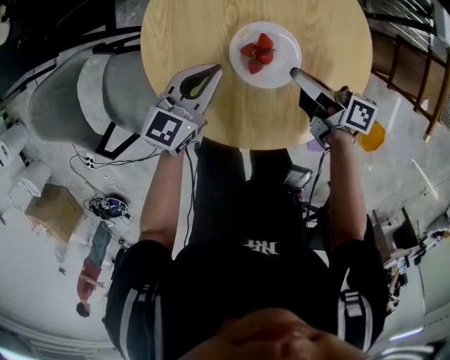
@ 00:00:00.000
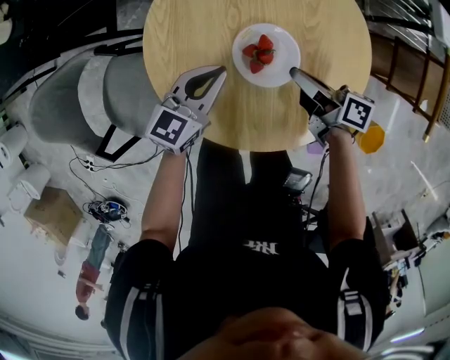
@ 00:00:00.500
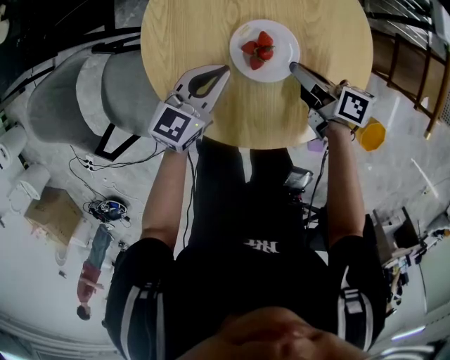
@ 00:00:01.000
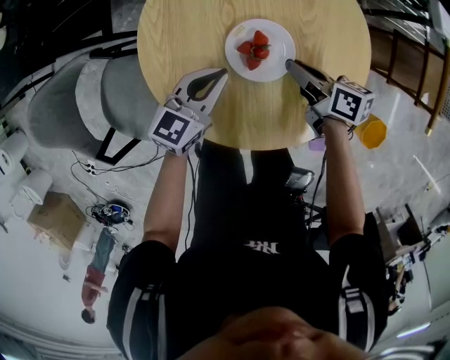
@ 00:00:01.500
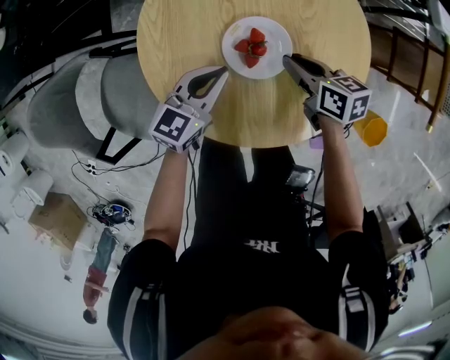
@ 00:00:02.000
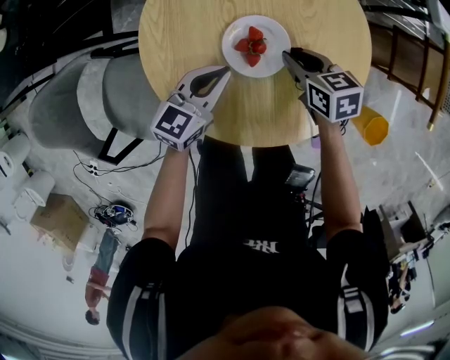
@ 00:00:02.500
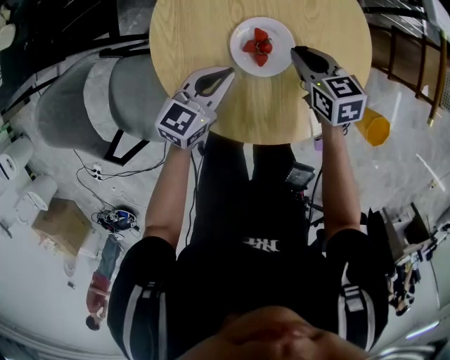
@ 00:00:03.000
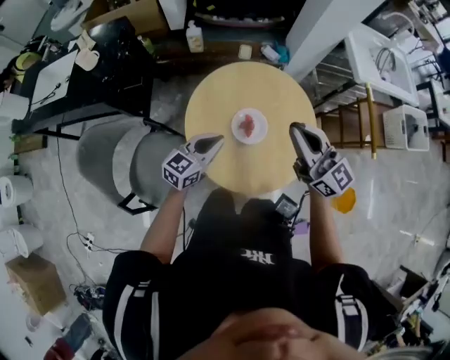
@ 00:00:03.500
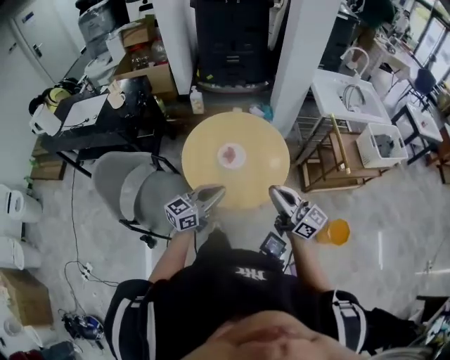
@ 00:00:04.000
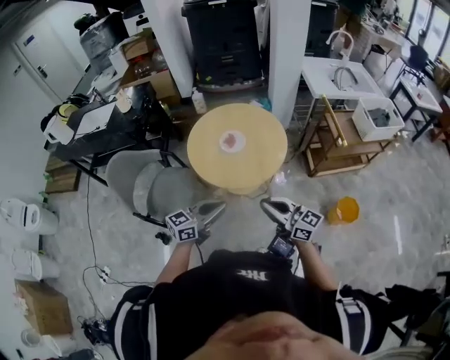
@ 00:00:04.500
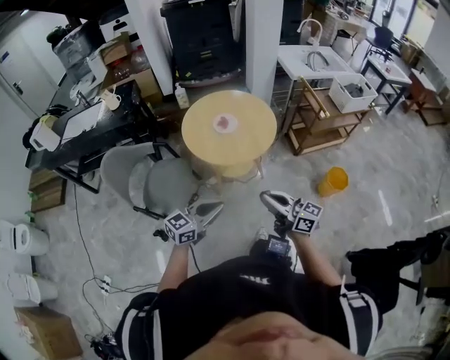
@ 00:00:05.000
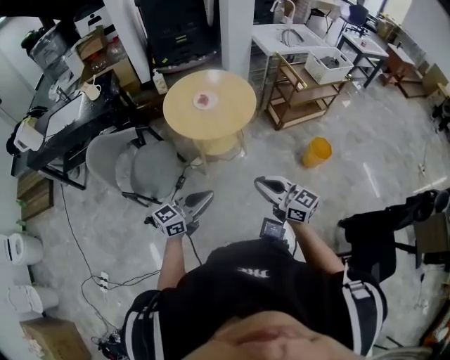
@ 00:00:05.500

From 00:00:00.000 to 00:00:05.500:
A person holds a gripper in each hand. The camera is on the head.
From 00:00:00.000 to 00:00:02.000: The right gripper swivels some 40 degrees.
From 00:00:02.000 to 00:00:03.500: The right gripper travels upward by approximately 35 cm, and points its fingers about 50 degrees further upward. Meanwhile the left gripper shifts some 15 cm upward.
From 00:00:03.500 to 00:00:05.500: Both grippers are carried backward, approximately 60 cm. The left gripper rotates some 20 degrees.

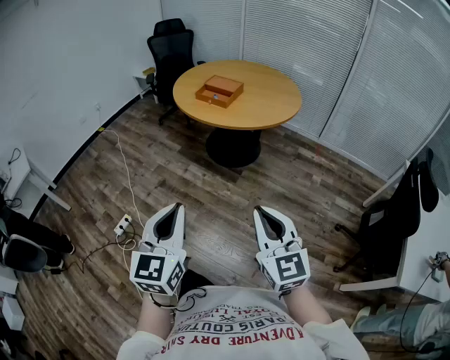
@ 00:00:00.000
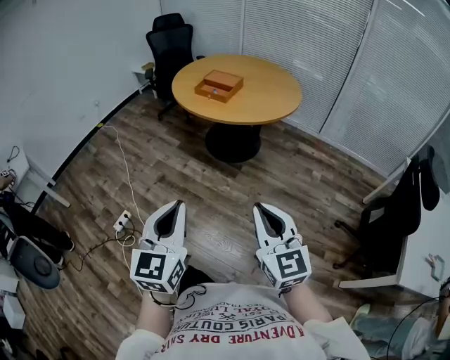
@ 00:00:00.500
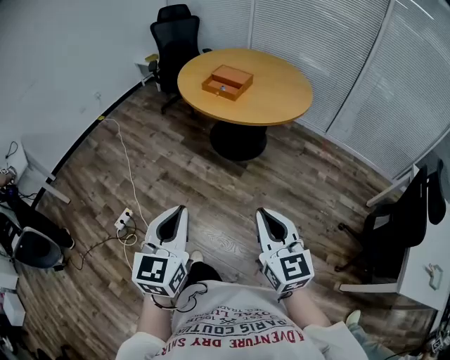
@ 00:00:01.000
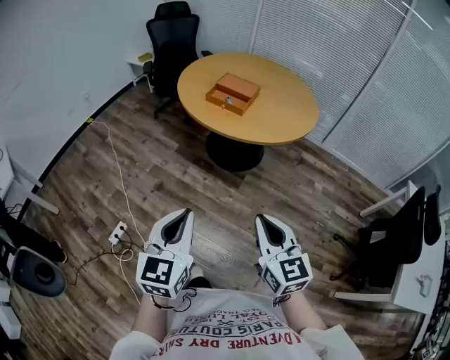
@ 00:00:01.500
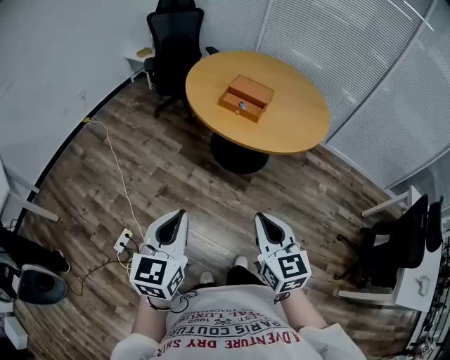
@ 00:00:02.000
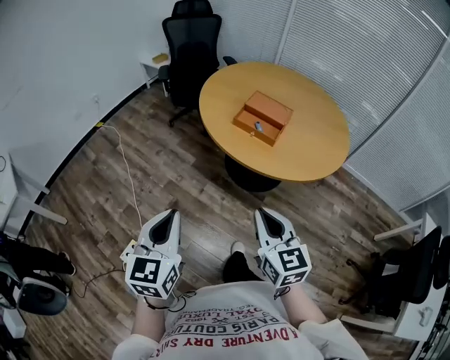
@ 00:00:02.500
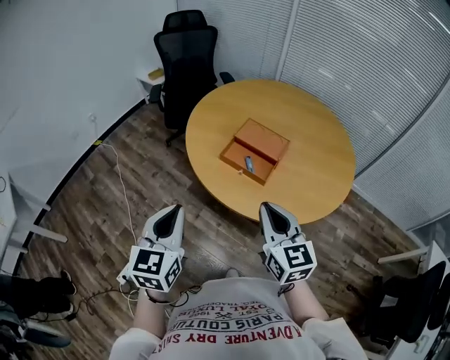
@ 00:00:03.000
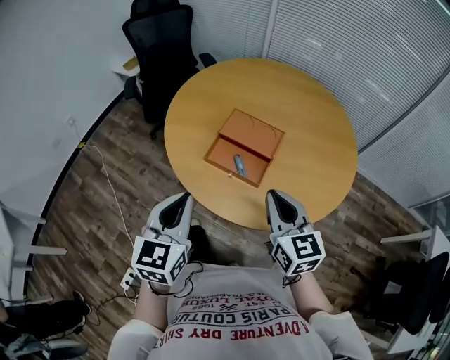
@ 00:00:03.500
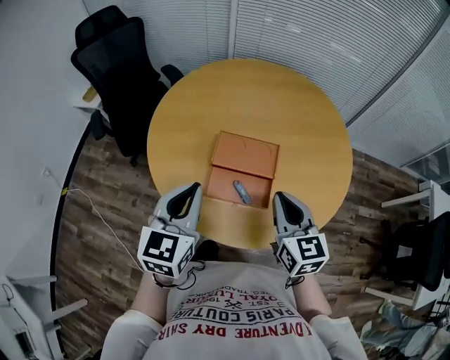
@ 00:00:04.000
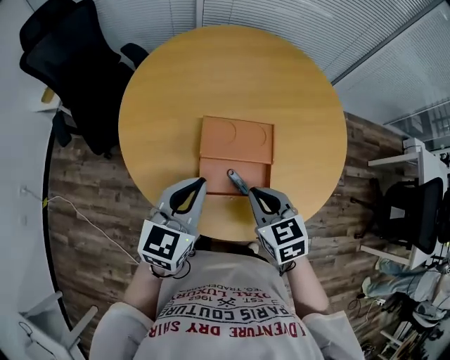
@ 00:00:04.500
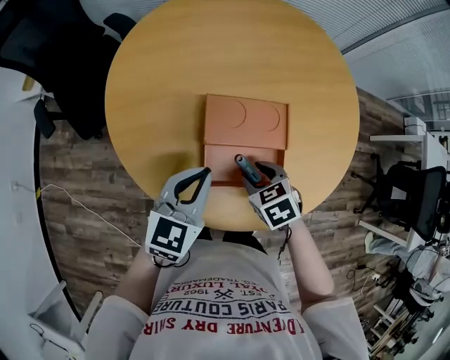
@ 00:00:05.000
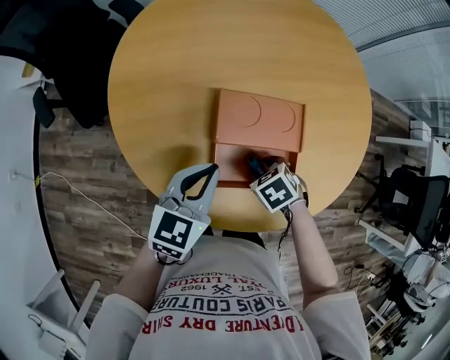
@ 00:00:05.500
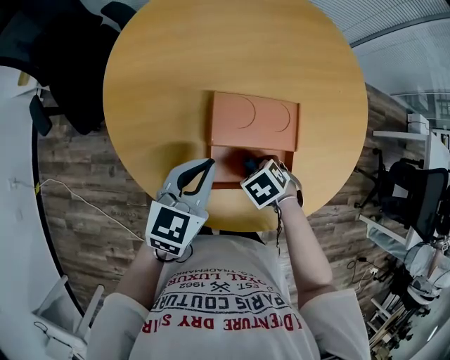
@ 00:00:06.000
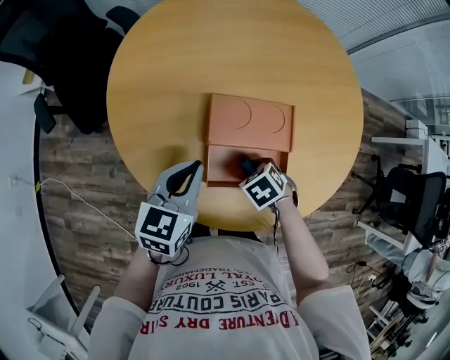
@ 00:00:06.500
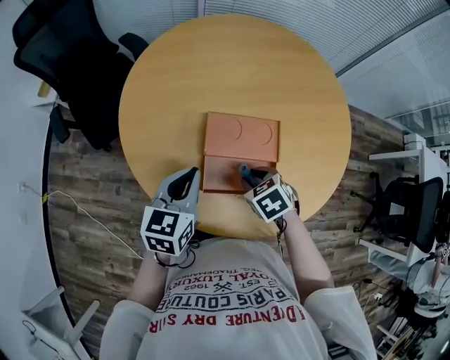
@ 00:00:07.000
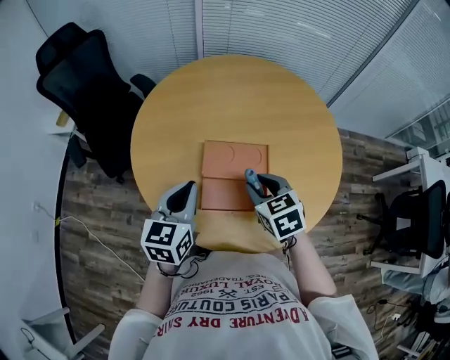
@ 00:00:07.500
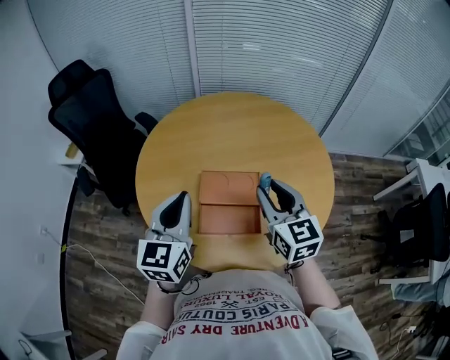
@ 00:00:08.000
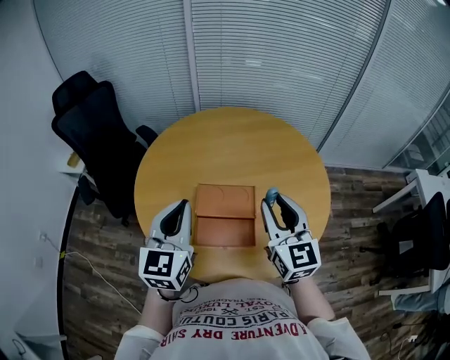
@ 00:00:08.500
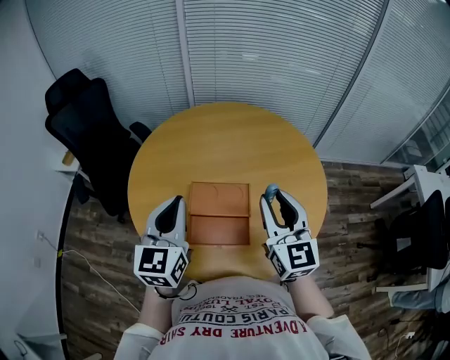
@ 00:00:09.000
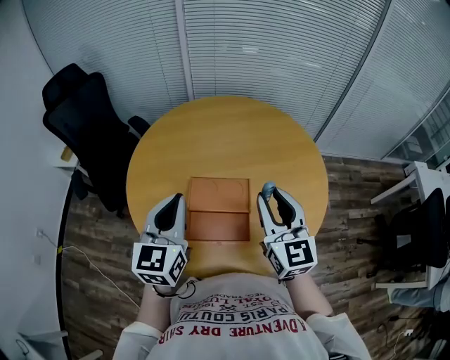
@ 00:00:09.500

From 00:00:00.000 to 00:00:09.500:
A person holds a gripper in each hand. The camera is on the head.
From 00:00:00.000 to 00:00:02.000: Both grippers move forward and to the left, some 35 cm.
From 00:00:02.000 to 00:00:04.000: Both grippers are carried approximately 60 cm. The right gripper swivels roughly 20 degrees; the left gripper swivels roughly 20 degrees.
From 00:00:04.000 to 00:00:05.500: The right gripper travels downward by approximately 30 cm, points its fingers about 60 degrees further downward, and opens up. The left gripper heads downward, covering roughly 15 cm, and changes its angle by about 30 degrees.
From 00:00:05.500 to 00:00:07.500: The left gripper heads upward, covering approximately 10 cm. The right gripper goes about 20 cm upward, and tips its fingers upward by some 40 degrees.
From 00:00:07.500 to 00:00:09.500: The left gripper shifts roughly 10 cm upward; the right gripper shifts roughly 20 cm upward and to the right, and angles its fingers upward, by some 40 degrees.

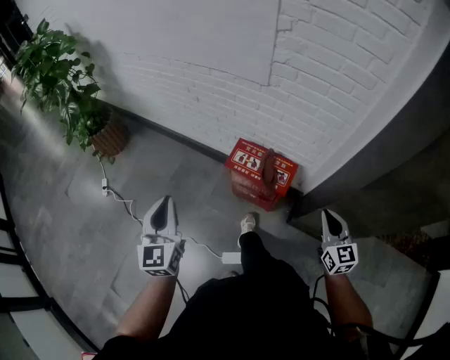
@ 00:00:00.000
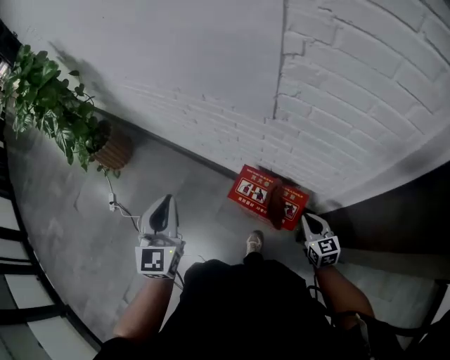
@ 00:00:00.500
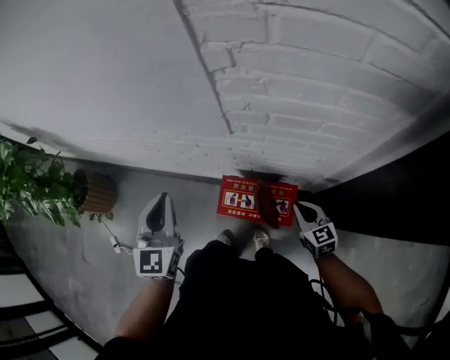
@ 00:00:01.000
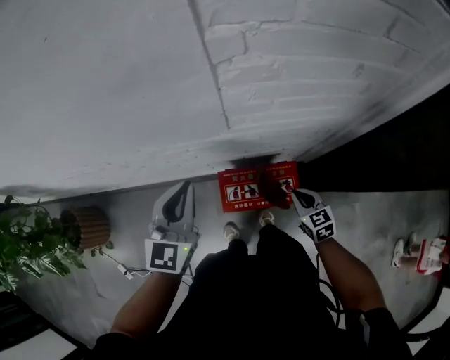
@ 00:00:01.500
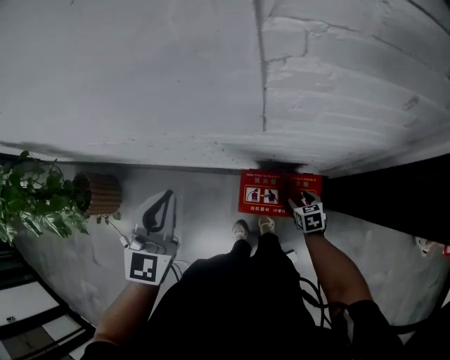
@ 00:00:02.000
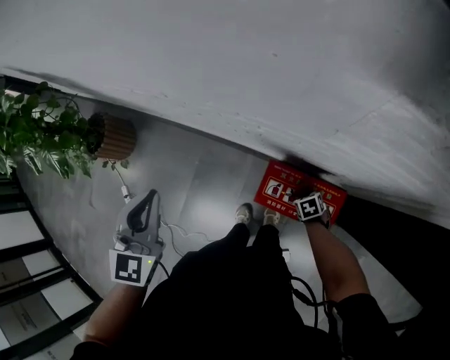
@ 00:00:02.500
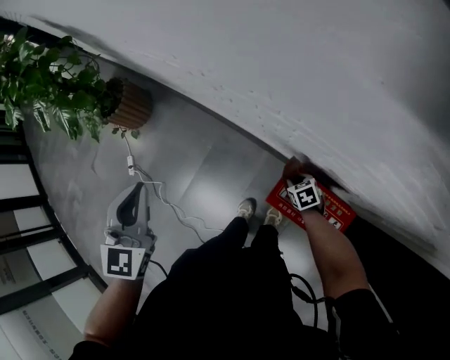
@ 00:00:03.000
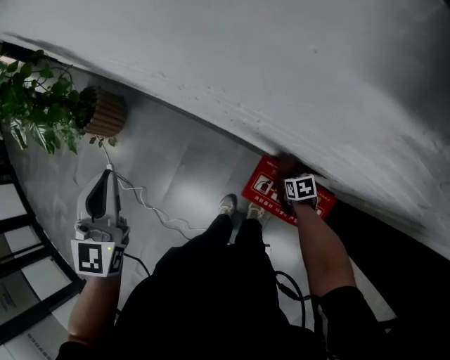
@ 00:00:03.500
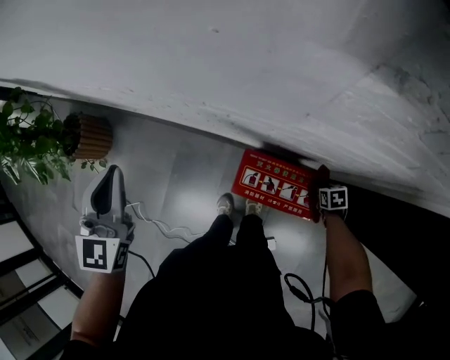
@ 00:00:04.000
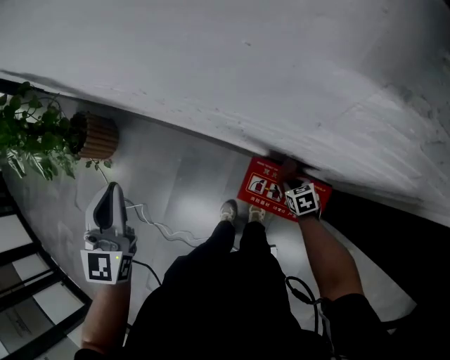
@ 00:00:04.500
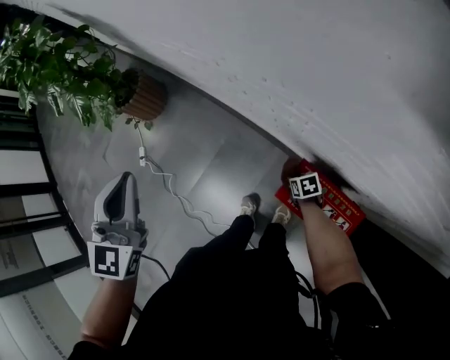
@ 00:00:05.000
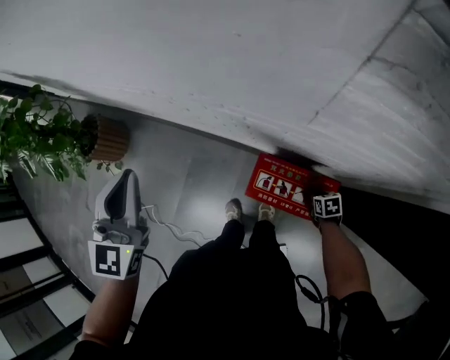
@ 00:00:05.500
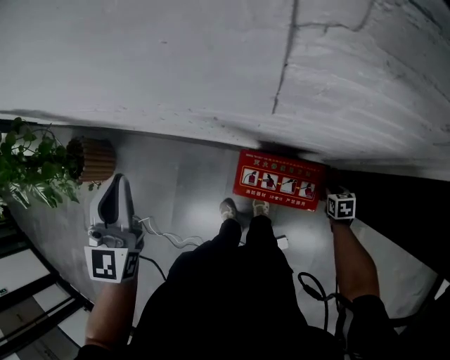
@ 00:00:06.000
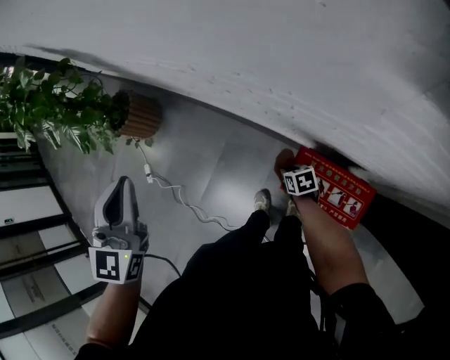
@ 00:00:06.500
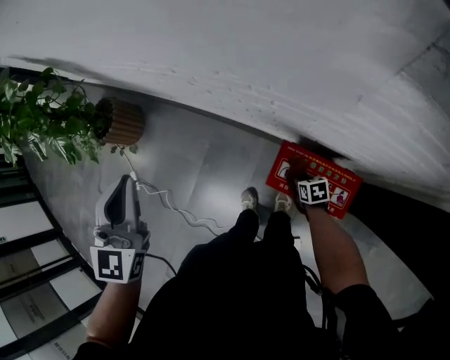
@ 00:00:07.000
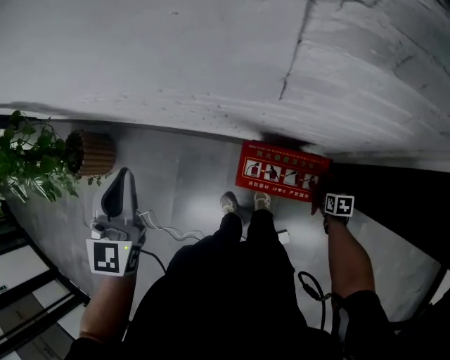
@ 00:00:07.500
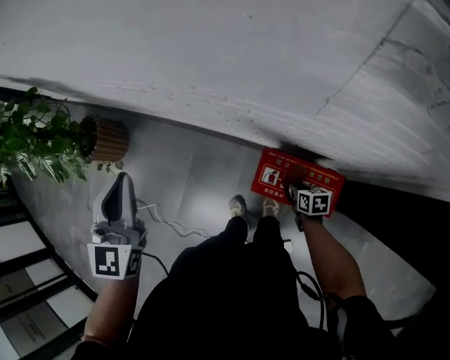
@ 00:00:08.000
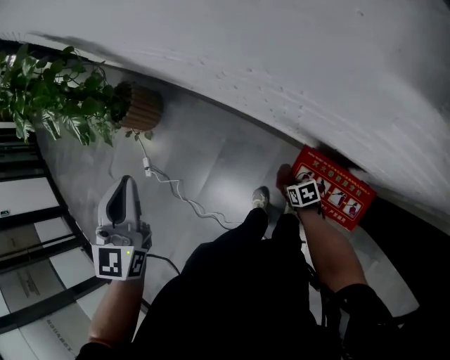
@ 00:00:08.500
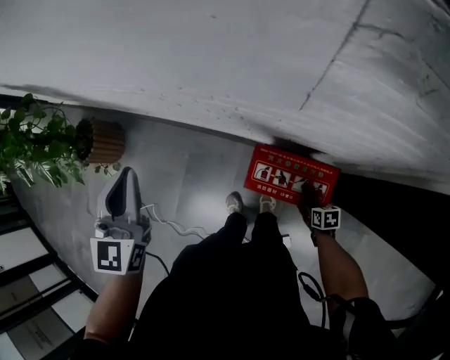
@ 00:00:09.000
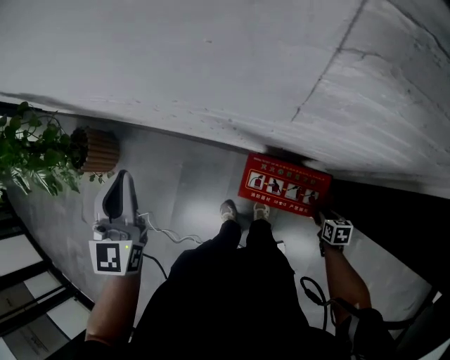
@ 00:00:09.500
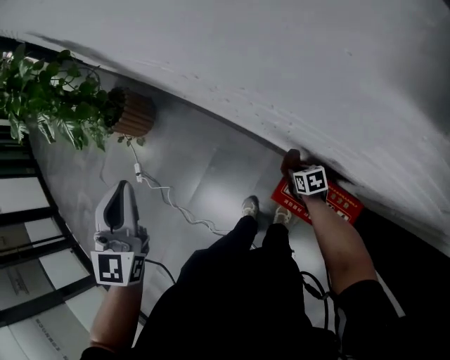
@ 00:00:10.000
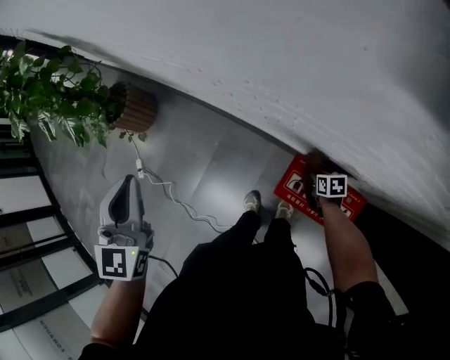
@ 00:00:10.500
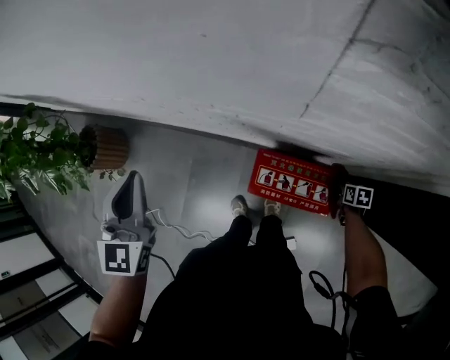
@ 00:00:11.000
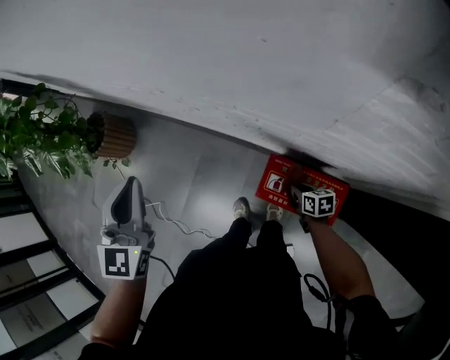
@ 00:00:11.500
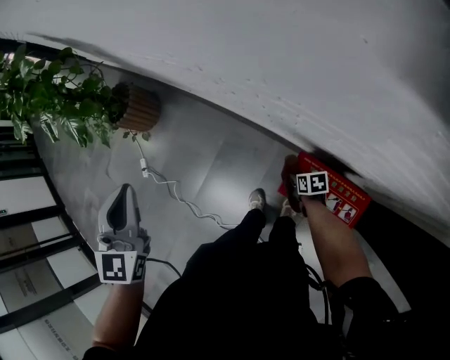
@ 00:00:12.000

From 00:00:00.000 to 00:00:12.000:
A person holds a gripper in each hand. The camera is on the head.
From 00:00:00.000 to 00:00:02.000: The right gripper shifts by some 40 cm, tilts its fingers some 40 degrees downward, and opens. Meanwhile the left gripper moves about 35 cm, and changes its angle by approximately 40 degrees.
From 00:00:02.000 to 00:00:04.000: The right gripper closes.
From 00:00:06.000 to 00:00:08.000: The right gripper changes its angle by approximately 20 degrees.
From 00:00:08.000 to 00:00:10.000: The right gripper ends up about 15 cm from where it was, and swivels approximately 30 degrees, while the left gripper moves approximately 5 cm.
